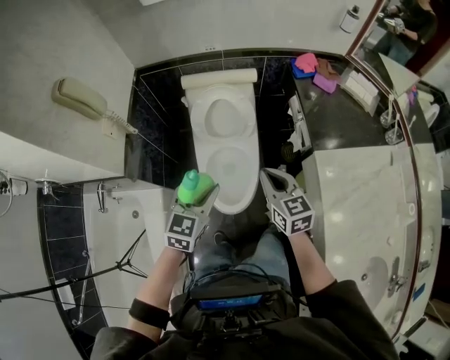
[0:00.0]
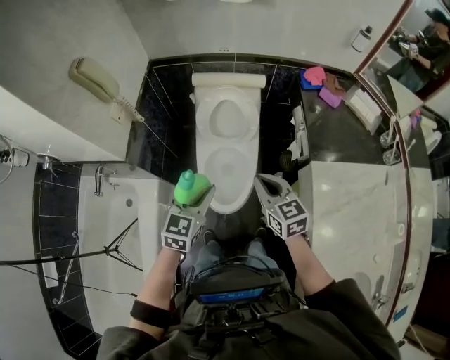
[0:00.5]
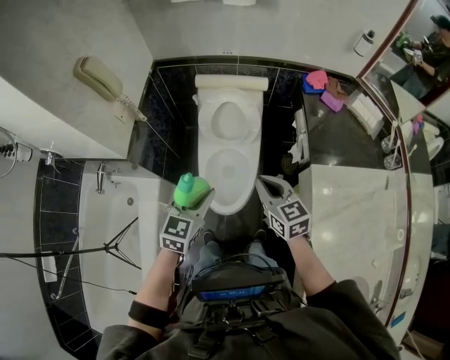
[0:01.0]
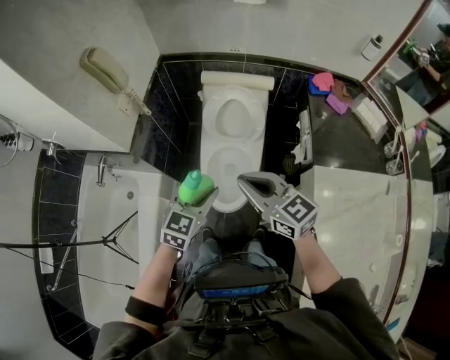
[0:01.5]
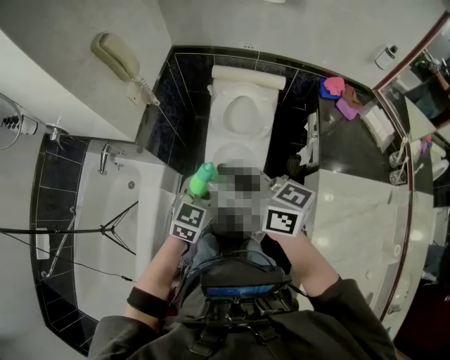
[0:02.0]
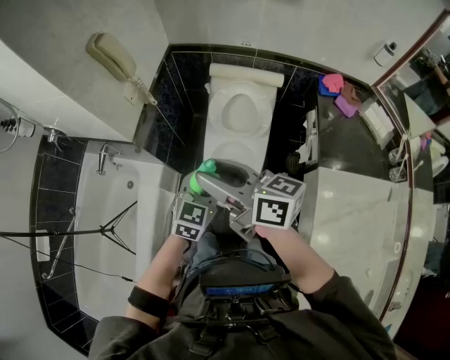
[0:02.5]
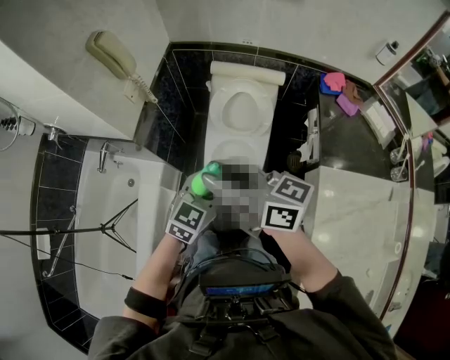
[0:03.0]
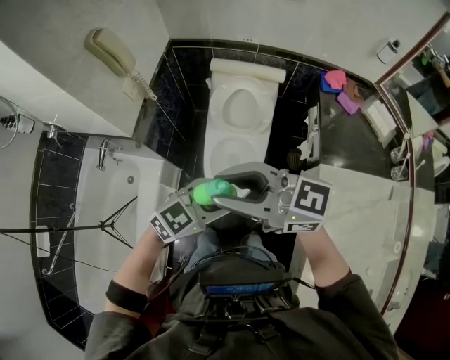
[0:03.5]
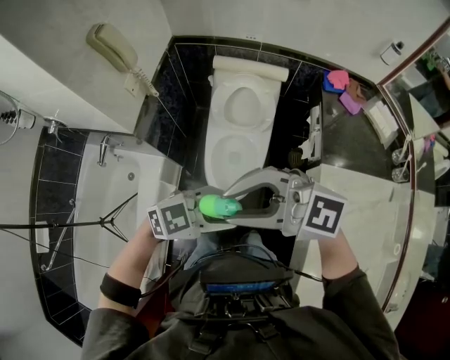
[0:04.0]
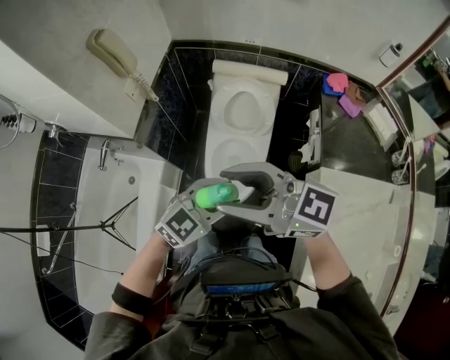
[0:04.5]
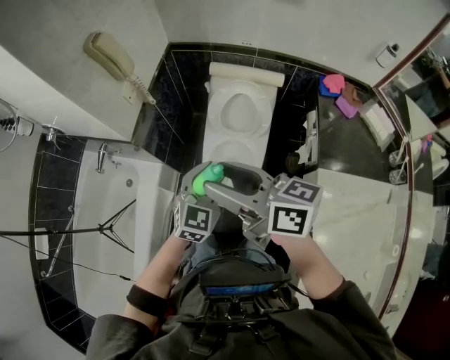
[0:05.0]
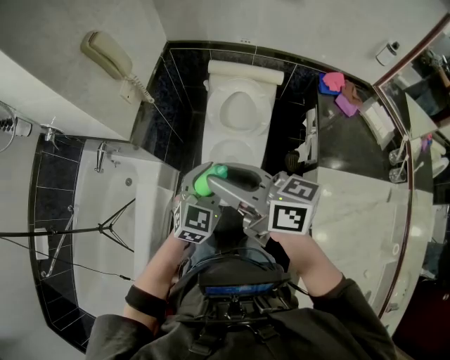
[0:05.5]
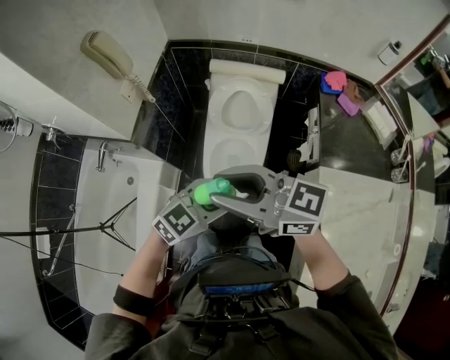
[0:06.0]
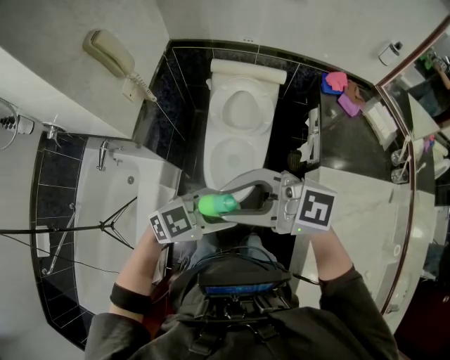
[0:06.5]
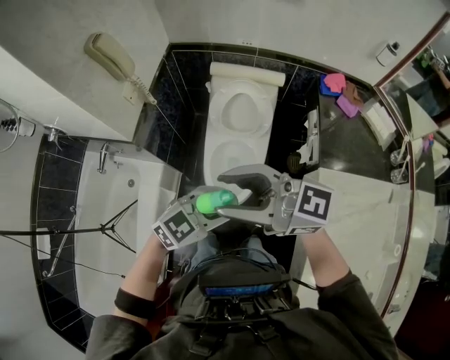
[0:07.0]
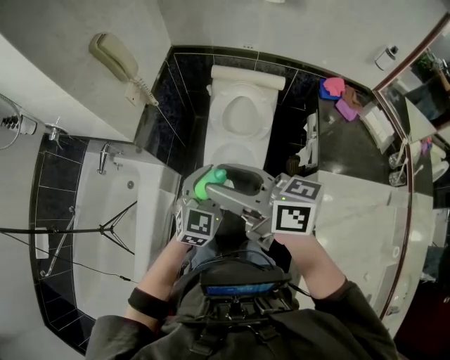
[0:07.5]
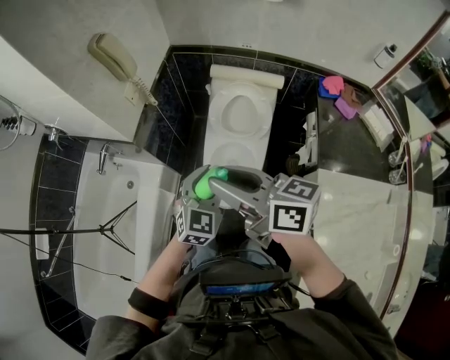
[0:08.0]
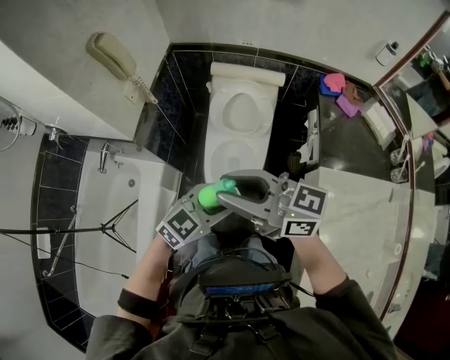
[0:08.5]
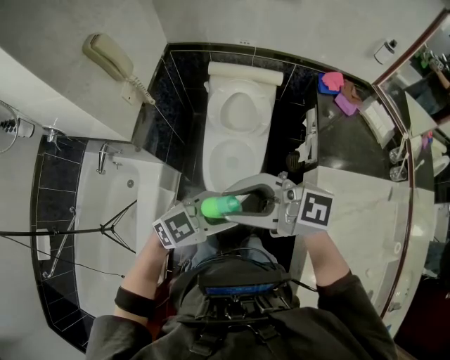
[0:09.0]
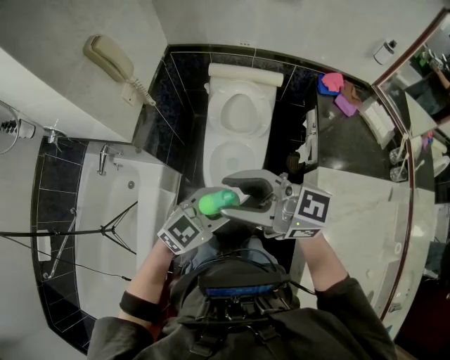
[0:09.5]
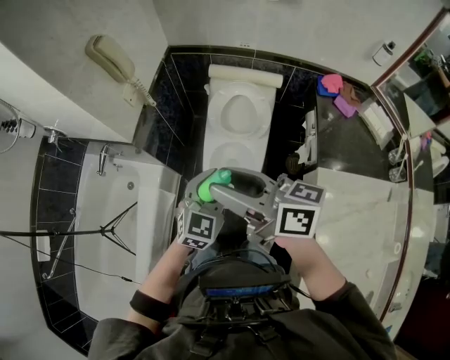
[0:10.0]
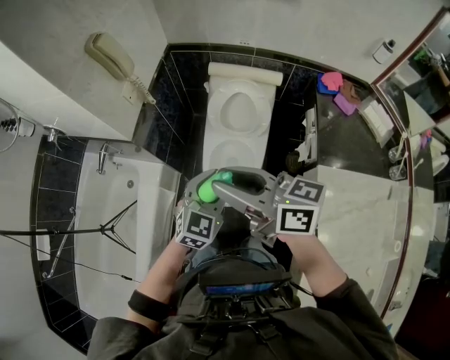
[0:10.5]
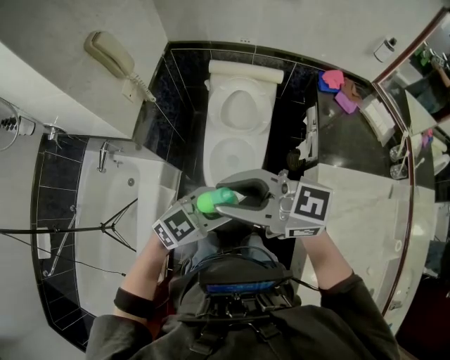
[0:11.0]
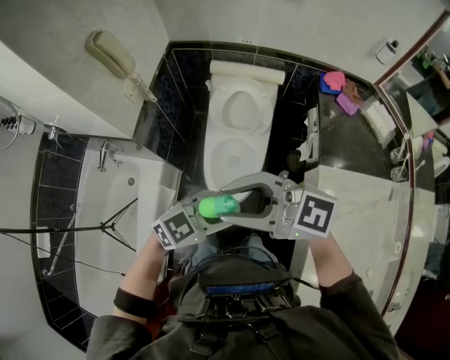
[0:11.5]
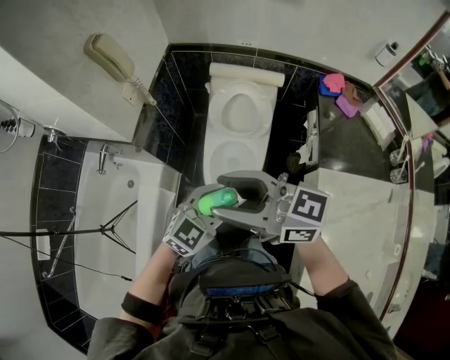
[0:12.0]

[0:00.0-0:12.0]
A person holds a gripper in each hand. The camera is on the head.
0:00.0 to 0:02.0: The right gripper heads upward and to the left, covering some 25 cm, rotates some 50 degrees, and opens its fingers.
0:02.0 to 0:04.0: The left gripper shifts by approximately 15 cm, and turns by roughly 50 degrees; the right gripper shifts by about 10 cm, and turns by roughly 60 degrees.
0:04.0 to 0:06.0: The left gripper swivels approximately 20 degrees; the right gripper moves roughly 5 cm, turns by some 40 degrees, and opens, then closes once more.
0:06.0 to 0:08.0: The right gripper turns by some 30 degrees, and opens, then closes once more. The left gripper changes place by roughly 10 cm, and swivels some 40 degrees.
0:10.0 to 0:12.0: The left gripper rotates some 20 degrees; the right gripper swivels roughly 20 degrees.

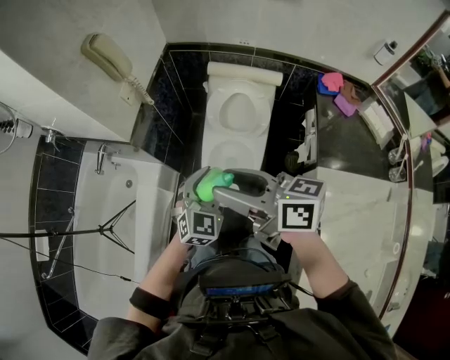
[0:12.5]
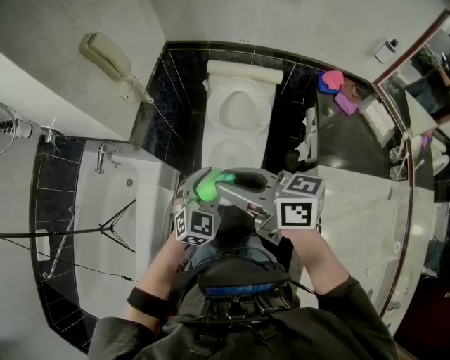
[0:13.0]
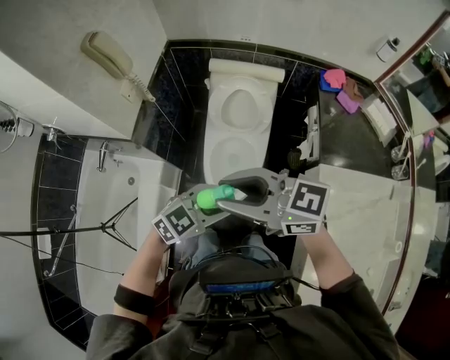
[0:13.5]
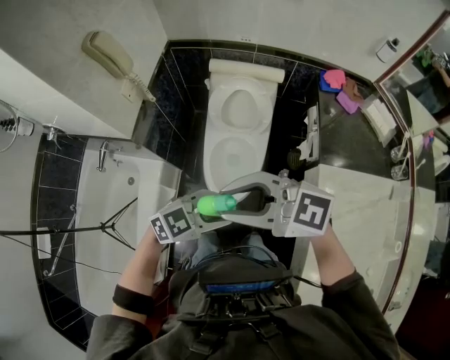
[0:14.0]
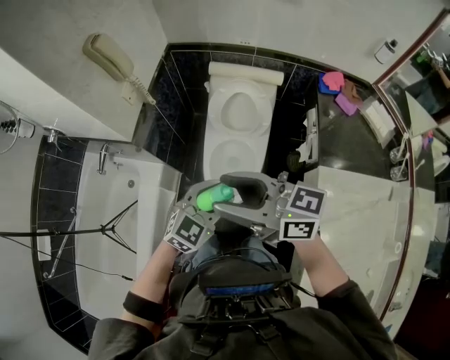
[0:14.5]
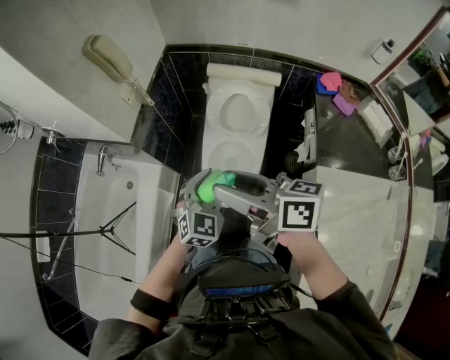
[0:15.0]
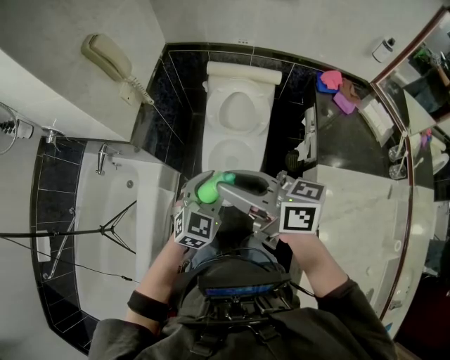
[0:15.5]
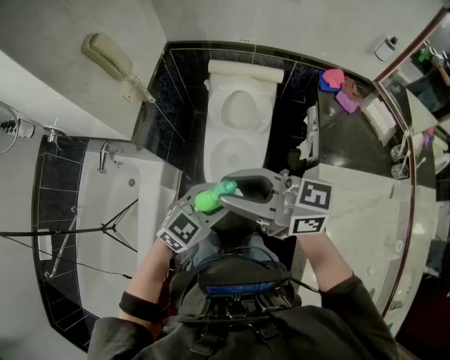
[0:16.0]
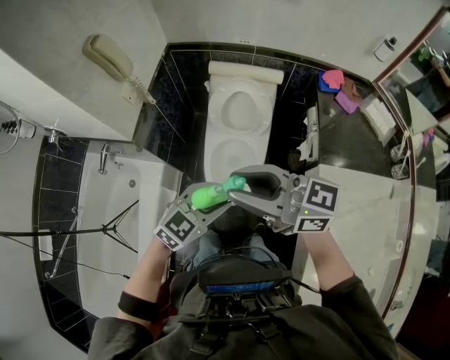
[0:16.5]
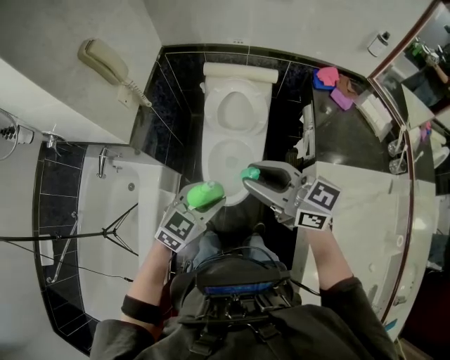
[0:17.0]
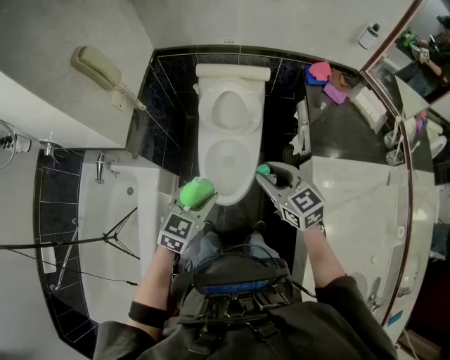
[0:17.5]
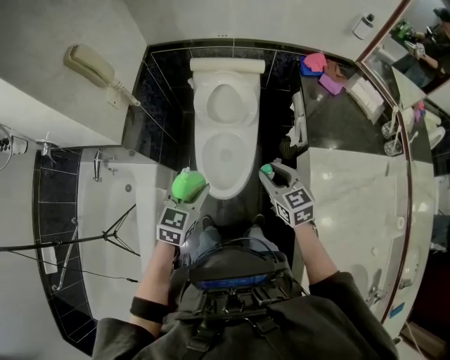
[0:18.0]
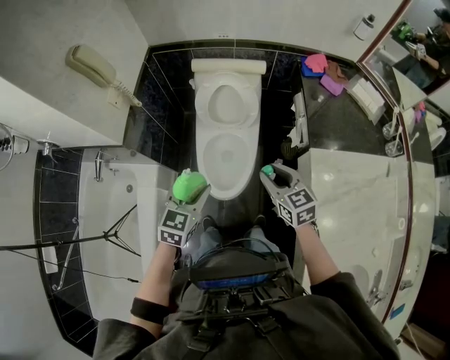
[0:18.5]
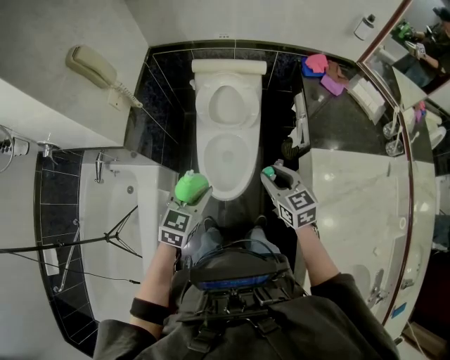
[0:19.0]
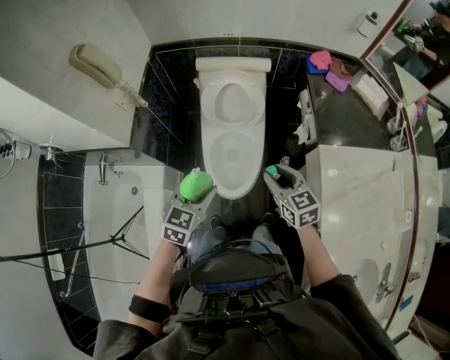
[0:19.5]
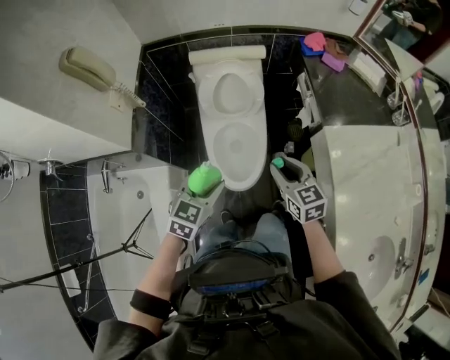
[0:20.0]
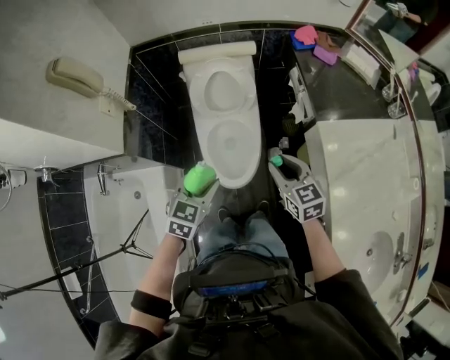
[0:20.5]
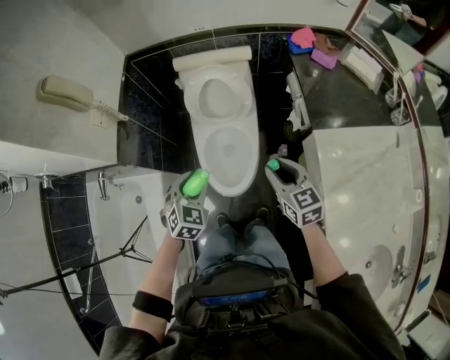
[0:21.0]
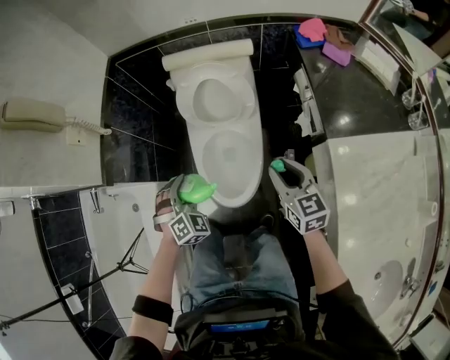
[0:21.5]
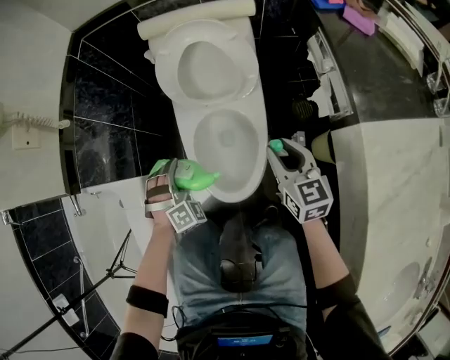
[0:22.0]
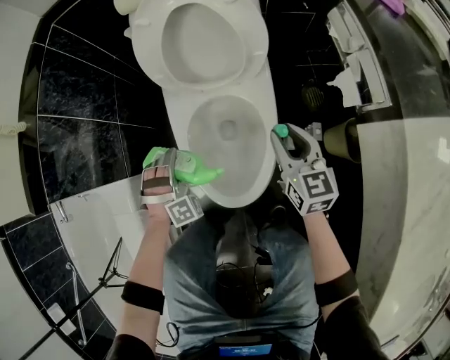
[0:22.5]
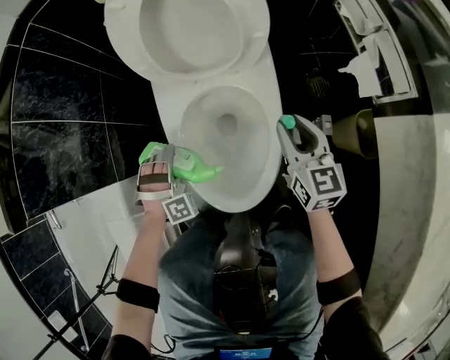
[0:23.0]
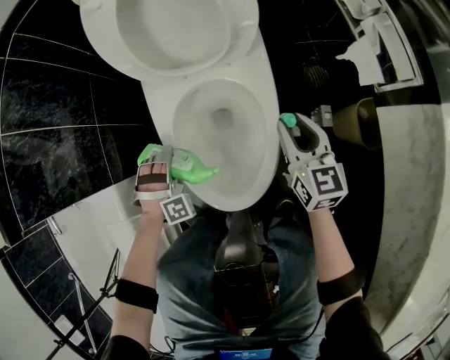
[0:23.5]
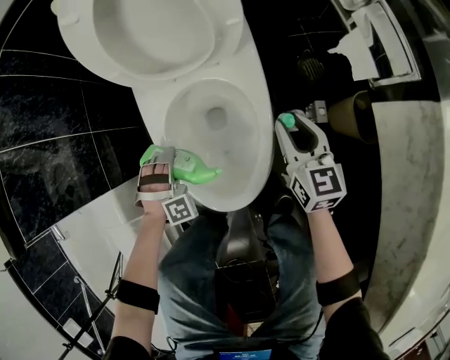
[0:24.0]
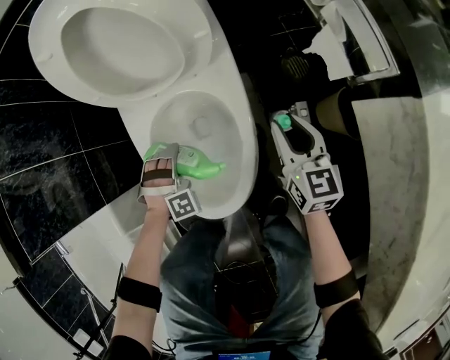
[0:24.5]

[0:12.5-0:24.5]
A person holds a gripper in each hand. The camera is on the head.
0:12.5 to 0:14.5: The left gripper changes its angle by approximately 20 degrees, while the right gripper closes and opens again.
0:14.5 to 0:16.5: The right gripper closes up.
0:16.5 to 0:18.5: The right gripper is displaced downward by approximately 20 cm, and tips its fingers downward by roughly 30 degrees; the left gripper shifts by approximately 5 cm, and rotates about 20 degrees.
0:18.5 to 0:20.5: The grippers move only a little.
0:20.5 to 0:22.5: The two grippers go about 40 cm downward and forward. The left gripper rotates around the line of its fingers by about 60 degrees, clockwise from behind.
0:22.5 to 0:24.5: The right gripper heads to the right and downward, covering roughly 15 cm. Meanwhile the left gripper moves downward and to the right, some 15 cm.

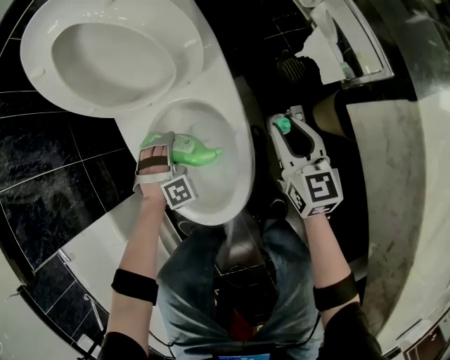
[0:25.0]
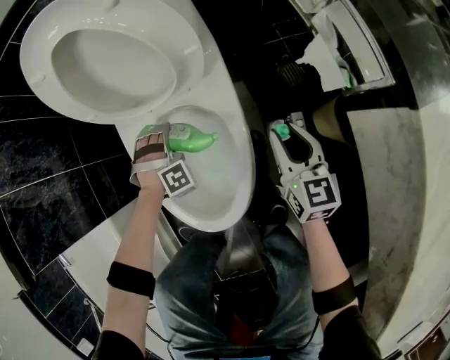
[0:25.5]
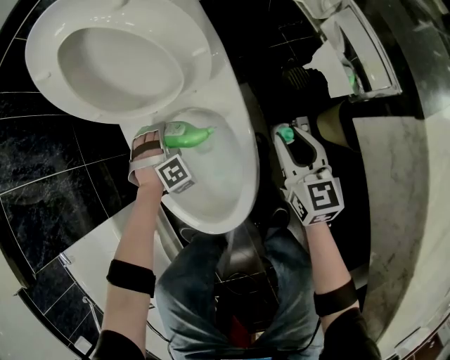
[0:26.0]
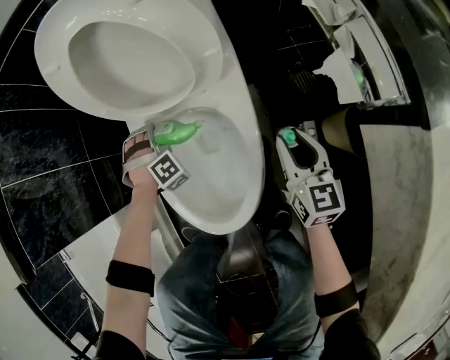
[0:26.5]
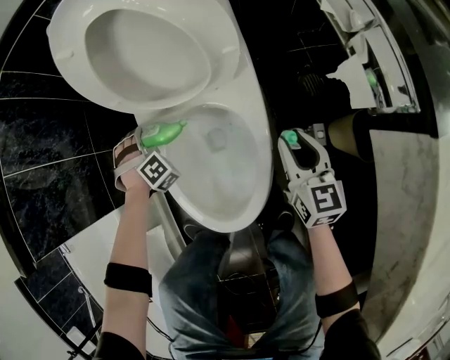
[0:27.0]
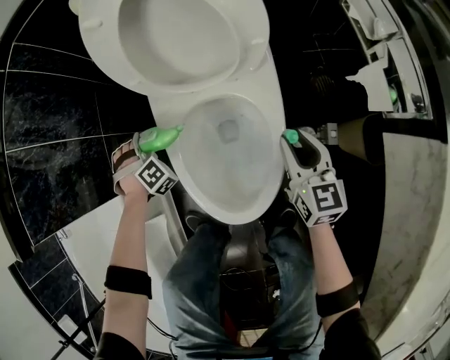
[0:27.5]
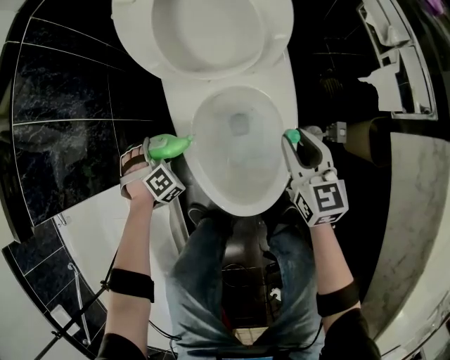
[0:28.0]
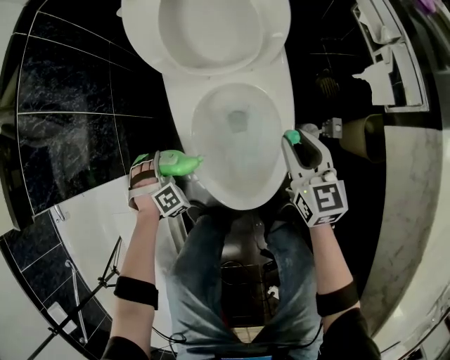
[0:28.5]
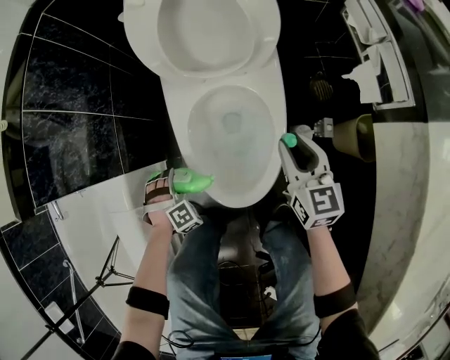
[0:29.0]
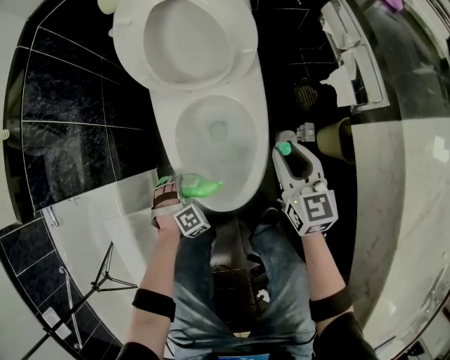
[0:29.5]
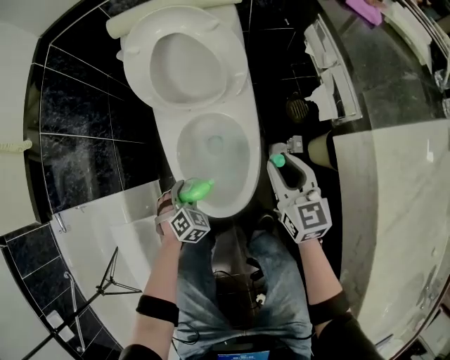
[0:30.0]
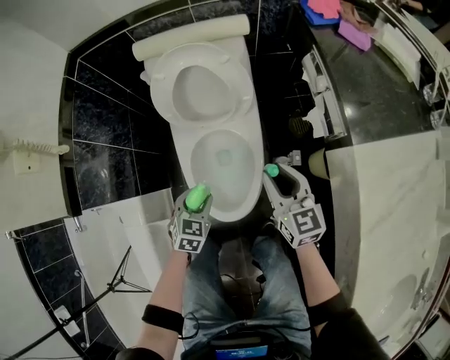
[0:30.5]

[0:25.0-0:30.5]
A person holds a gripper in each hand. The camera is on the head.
0:25.0 to 0:27.0: The left gripper is displaced to the left and forward by about 20 cm, and swivels some 30 degrees.
0:27.0 to 0:28.5: The left gripper heads to the left and backward, covering some 20 cm. Meanwhile the right gripper moves to the left, about 10 cm.
0:28.5 to 0:30.5: The two grippers go roughly 20 cm upward. The left gripper rolls counterclockwise, seen from behind, by approximately 60 degrees.
